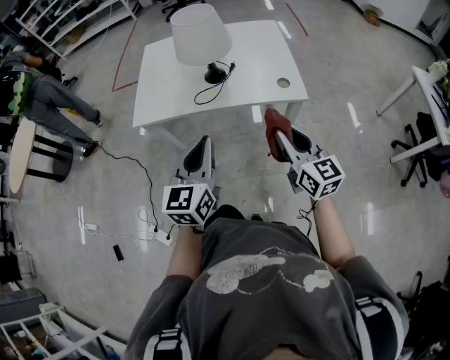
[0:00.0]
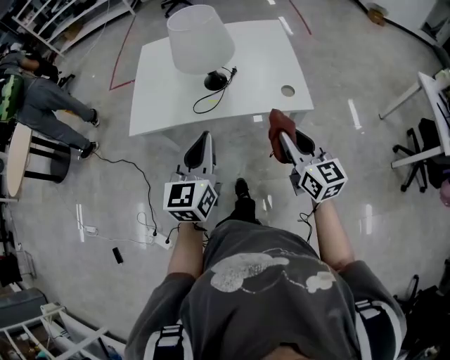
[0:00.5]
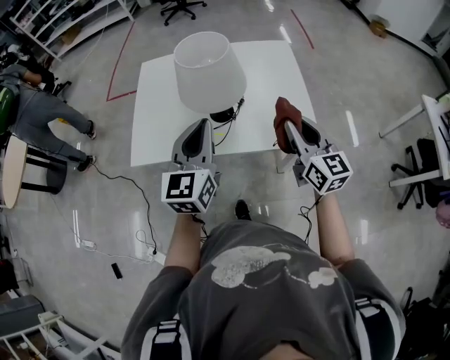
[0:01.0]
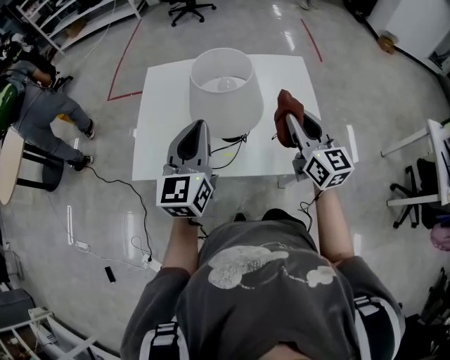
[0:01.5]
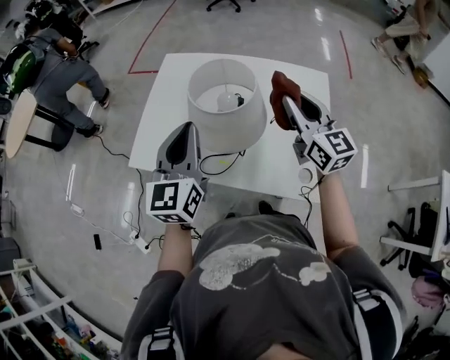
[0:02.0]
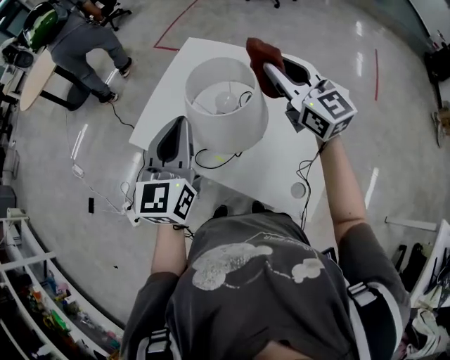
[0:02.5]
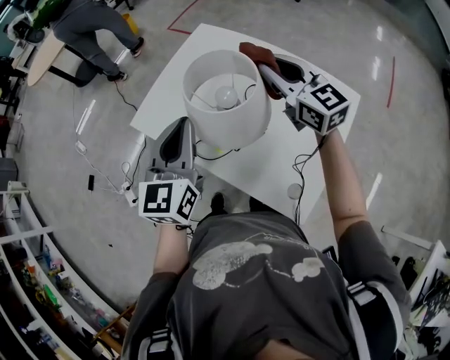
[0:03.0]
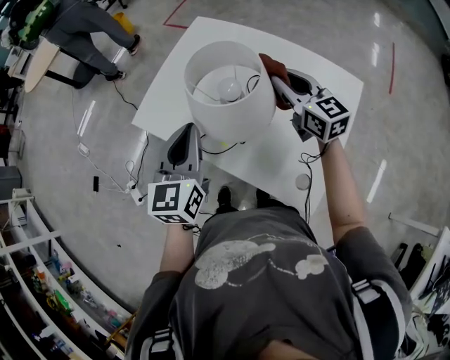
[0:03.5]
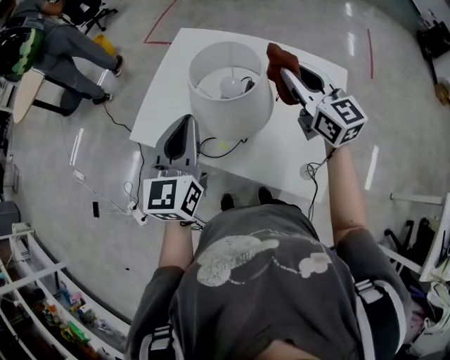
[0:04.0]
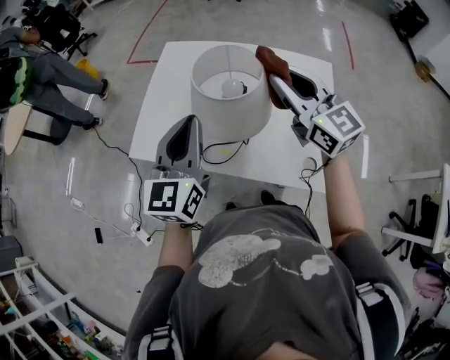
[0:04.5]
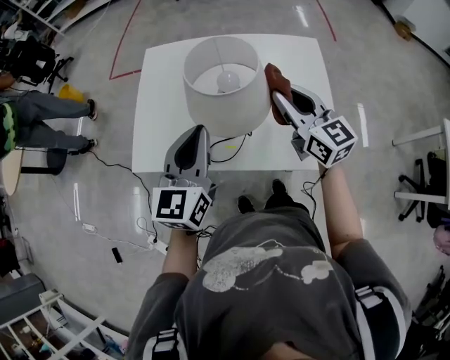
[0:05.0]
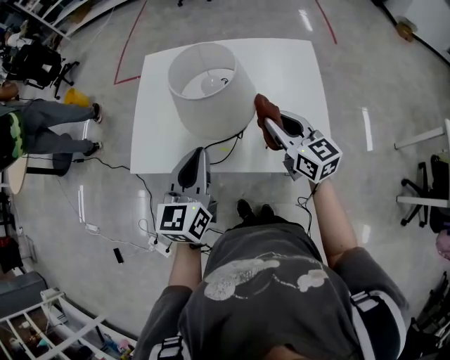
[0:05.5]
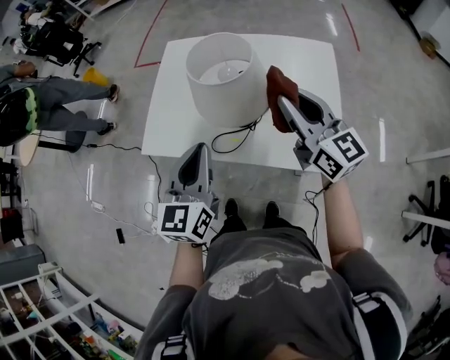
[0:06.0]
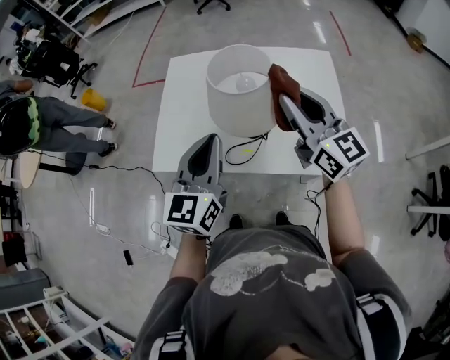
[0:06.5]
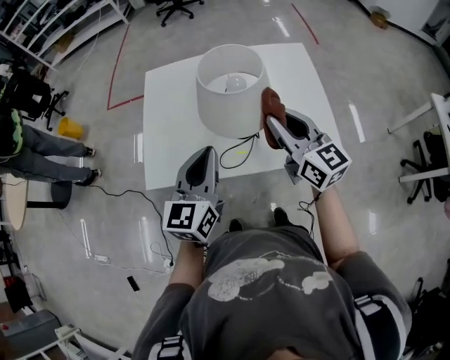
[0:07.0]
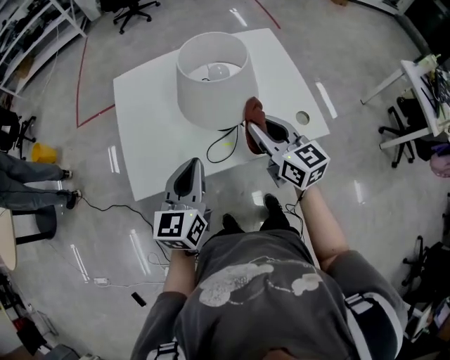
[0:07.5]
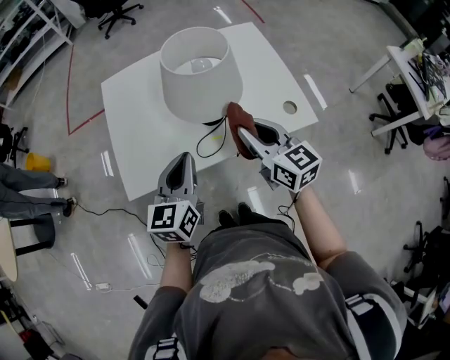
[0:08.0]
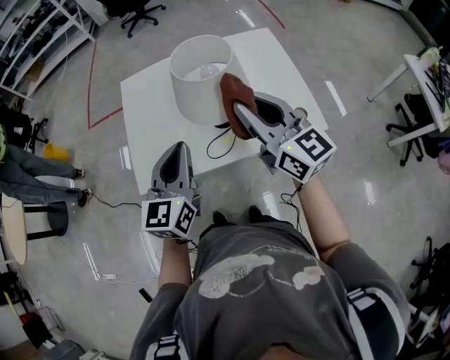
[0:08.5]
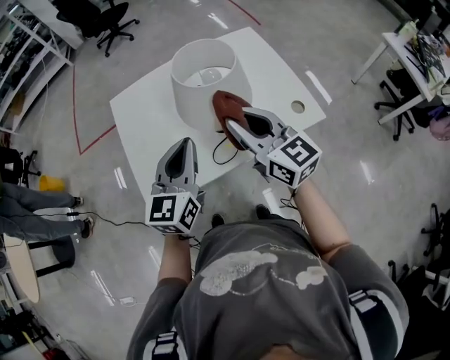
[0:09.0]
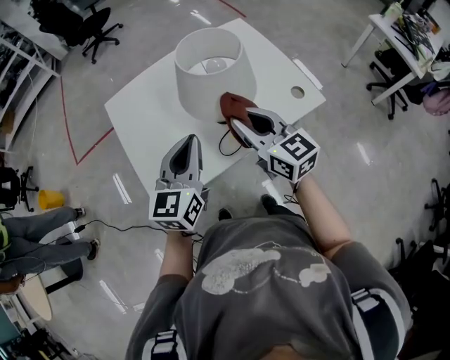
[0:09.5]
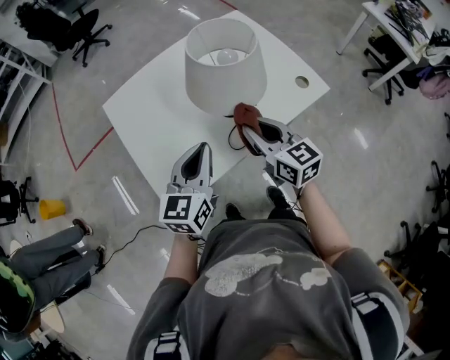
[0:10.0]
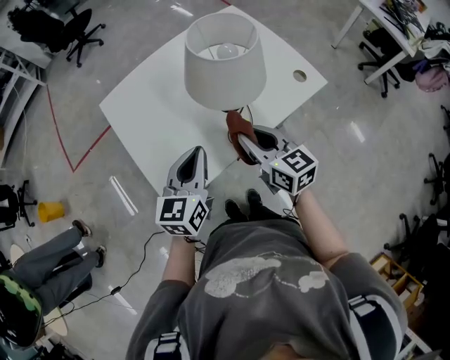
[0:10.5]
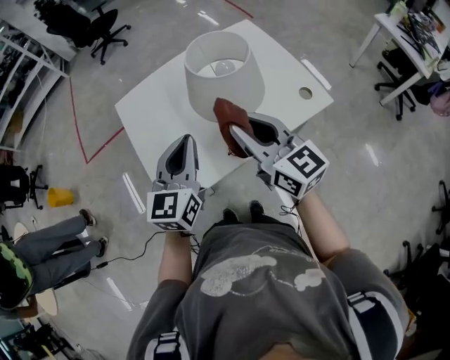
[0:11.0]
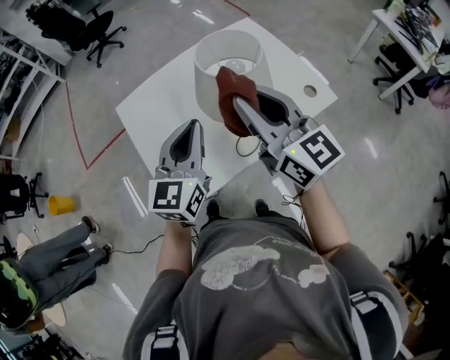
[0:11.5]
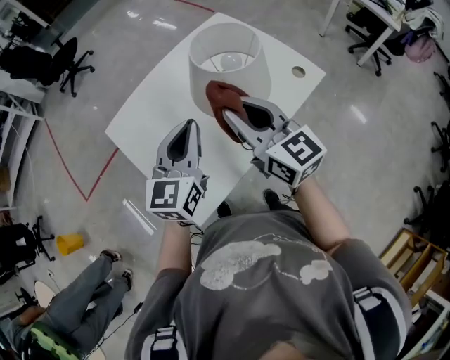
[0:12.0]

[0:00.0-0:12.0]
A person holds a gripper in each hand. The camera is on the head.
0:00.0 to 0:02.0: The grippers both shift forward by about 40 cm.
0:02.0 to 0:04.0: The right gripper moves up and down over roughly 10 cm, changing direction 2 times.
0:04.0 to 0:06.0: The right gripper goes about 15 cm backward, and reaches roughly 10 cm downward, then returns. Meanwhile the left gripper travels backward by roughly 5 cm.
0:06.0 to 0:08.0: The left gripper heads downward and to the left, covering approximately 10 cm, and changes its angle by about 30 degrees. The right gripper moves to the left, downward and backward, about 15 cm, and rotates approximately 30 degrees.
0:08.0 to 0:10.0: The right gripper is displaced to the left by about 10 cm, and reaches approximately 10 cm upward, then returns; the left gripper goes some 5 cm to the left, and swivels about 20 degrees.
0:10.0 to 0:12.0: The left gripper goes roughly 10 cm forward and upward. Meanwhile the right gripper is displaced upward and to the left by some 15 cm.

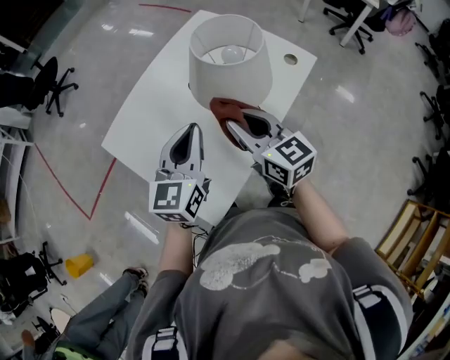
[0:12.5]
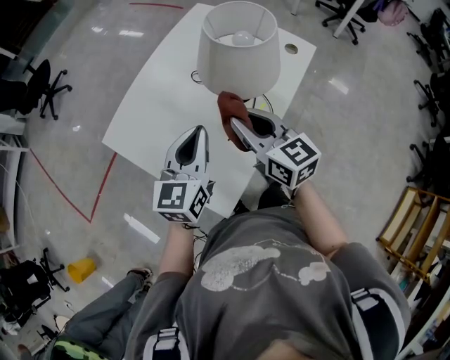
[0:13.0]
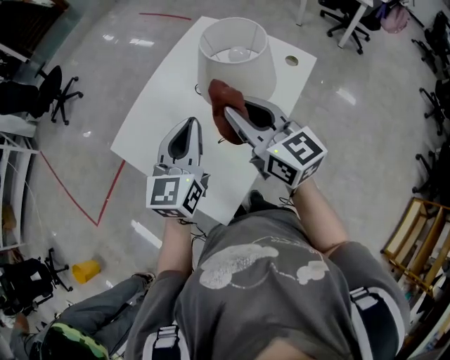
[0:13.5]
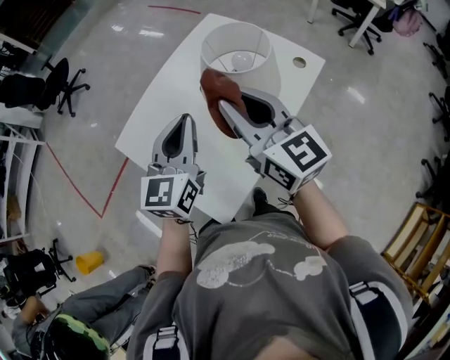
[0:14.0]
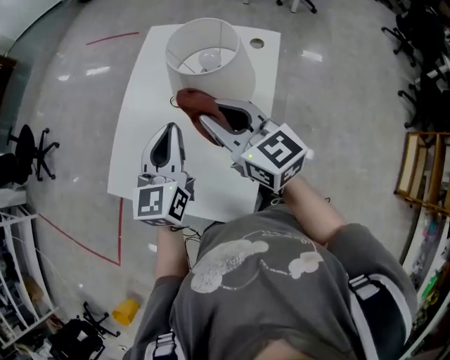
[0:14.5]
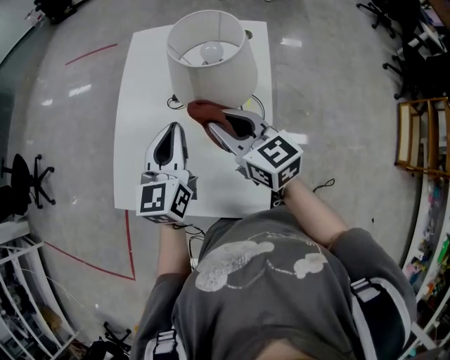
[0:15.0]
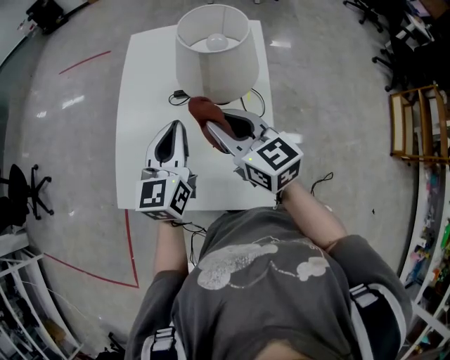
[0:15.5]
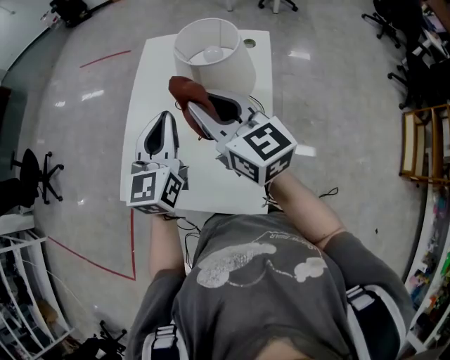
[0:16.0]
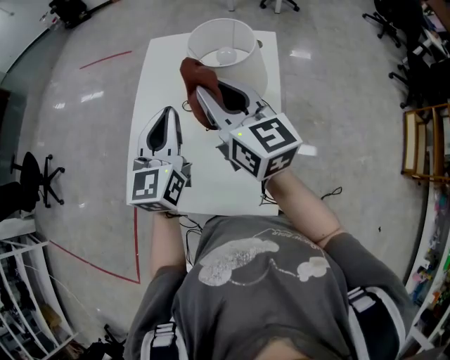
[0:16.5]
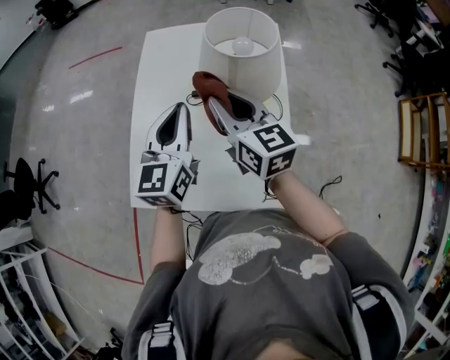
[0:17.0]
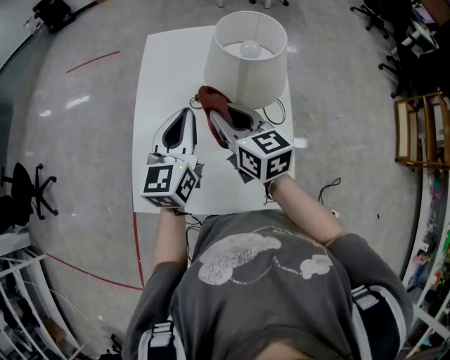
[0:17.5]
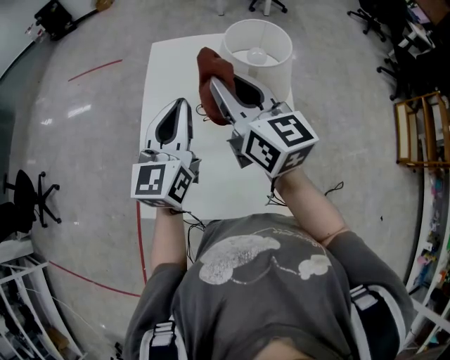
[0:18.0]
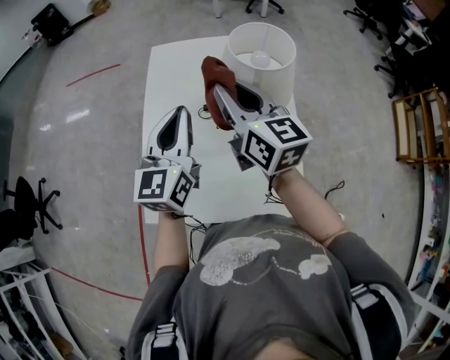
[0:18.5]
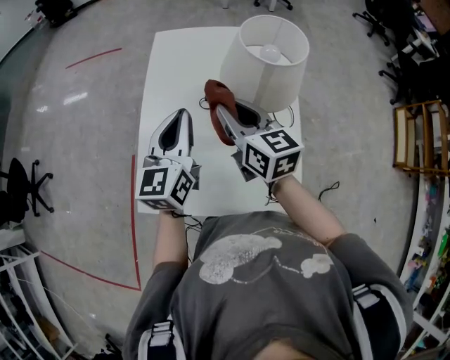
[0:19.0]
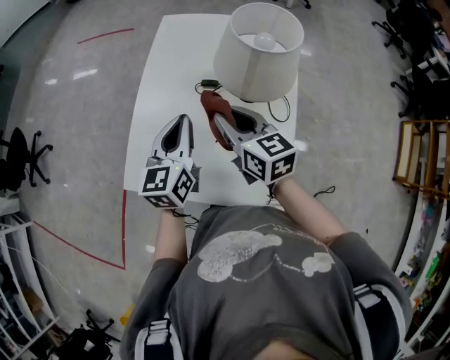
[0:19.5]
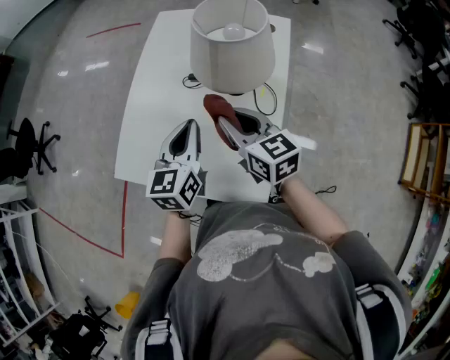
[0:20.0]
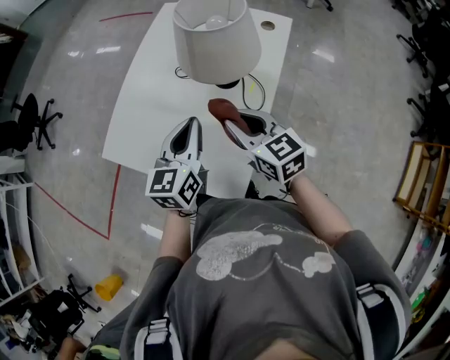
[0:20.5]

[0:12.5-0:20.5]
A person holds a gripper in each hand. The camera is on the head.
0:12.5 to 0:14.5: The right gripper is displaced upward and to the left by about 10 cm; the left gripper goes about 5 cm forward.
0:14.5 to 0:16.5: The right gripper goes approximately 5 cm upward, and changes its angle by approximately 20 degrees. Meanwhile the left gripper moves approximately 5 cm.
0:16.5 to 0:18.5: The left gripper travels to the left by about 5 cm, while the right gripper moves roughly 10 cm downward and comes back.
0:18.5 to 0:20.5: The left gripper heads to the right, backward and downward, covering roughly 25 cm, and rotates some 20 degrees; the right gripper heads downward, backward and to the right, covering some 25 cm, and swivels about 40 degrees.

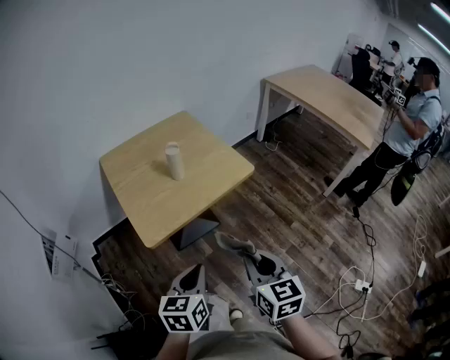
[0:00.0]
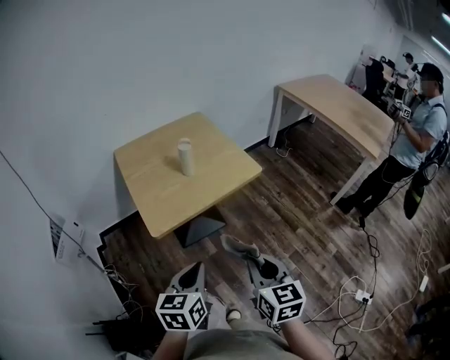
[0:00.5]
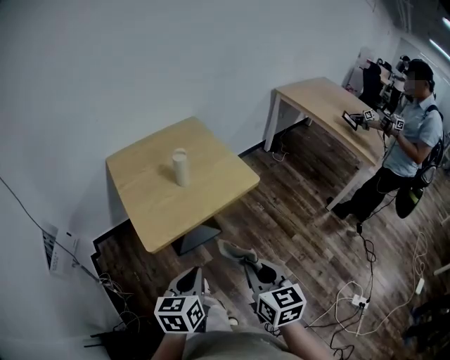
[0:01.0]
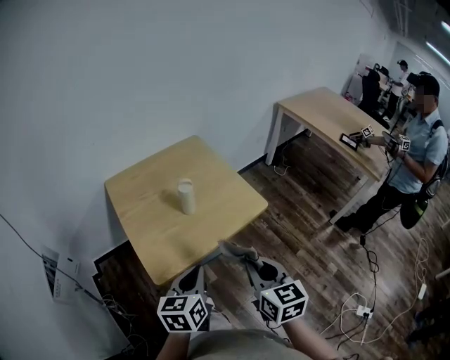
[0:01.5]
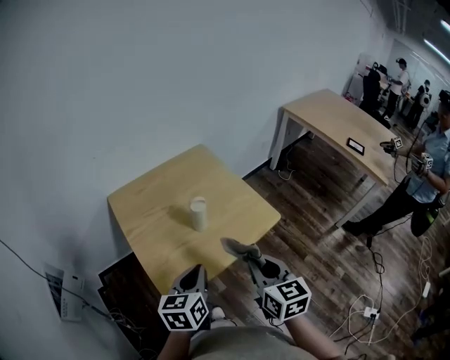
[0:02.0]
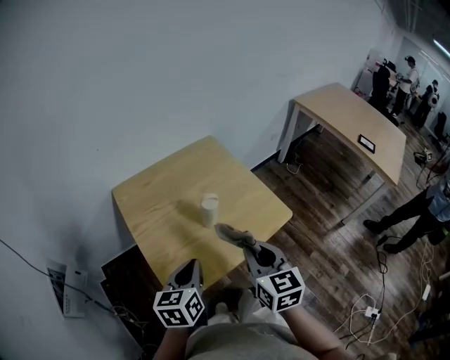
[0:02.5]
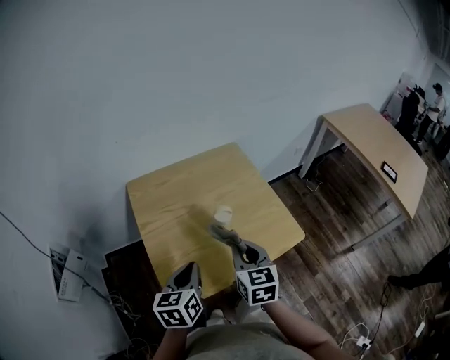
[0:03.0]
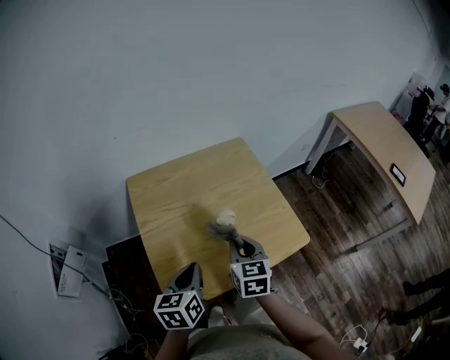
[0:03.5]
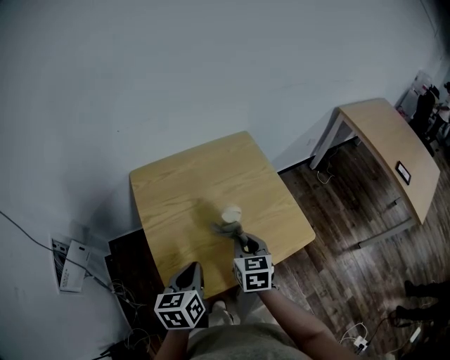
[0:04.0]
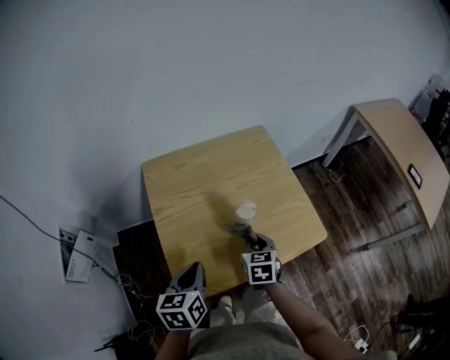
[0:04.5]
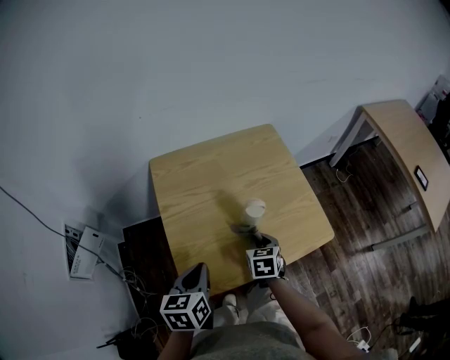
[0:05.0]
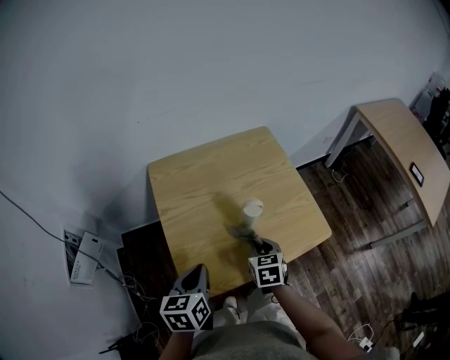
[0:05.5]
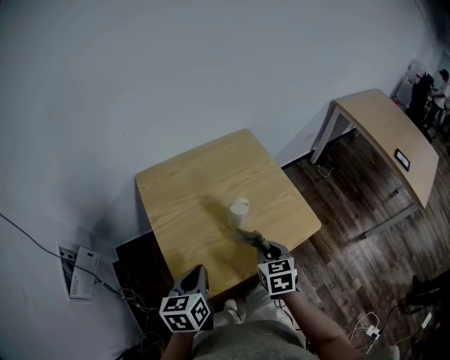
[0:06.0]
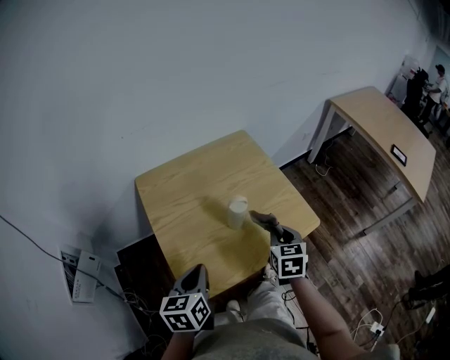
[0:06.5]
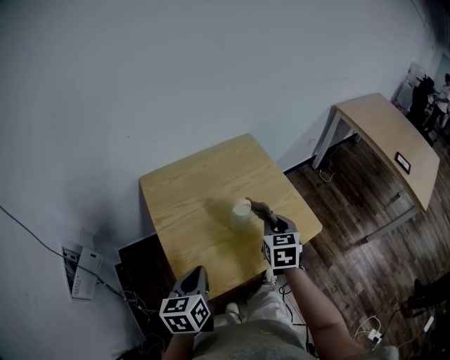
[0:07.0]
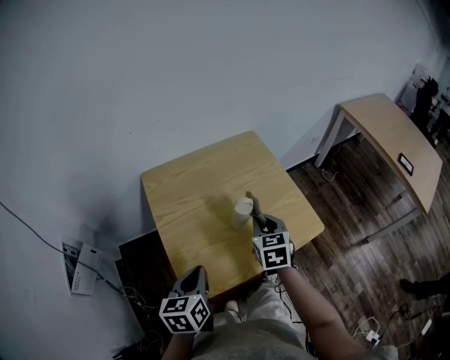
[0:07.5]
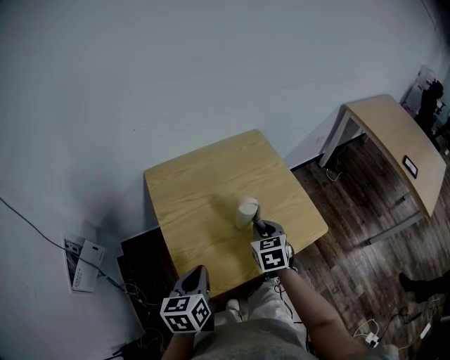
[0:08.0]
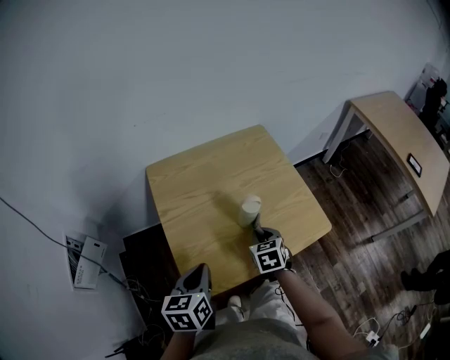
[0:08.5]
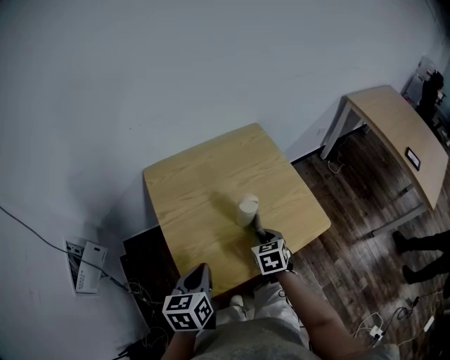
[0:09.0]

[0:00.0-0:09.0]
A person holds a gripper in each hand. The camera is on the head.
0:00.0 to 0:02.0: Both grippers move forward, approximately 20 cm.
0:02.0 to 0:04.5: The right gripper goes roughly 25 cm downward, forward and to the left, and turns by about 20 degrees; the left gripper travels to the left, downward and forward by some 10 cm, and swivels roughly 20 degrees.
0:04.5 to 0:07.0: The right gripper travels upward and to the right by some 10 cm.
0:07.0 to 0:09.0: The right gripper heads downward, covering about 10 cm.
